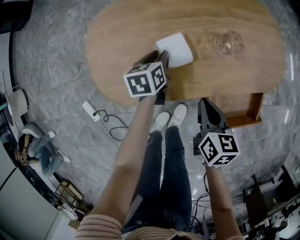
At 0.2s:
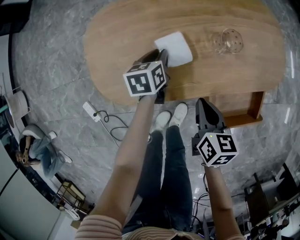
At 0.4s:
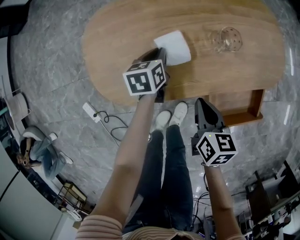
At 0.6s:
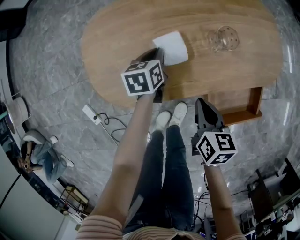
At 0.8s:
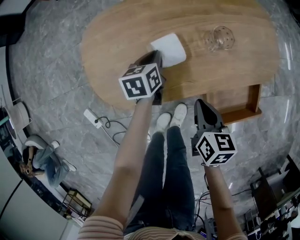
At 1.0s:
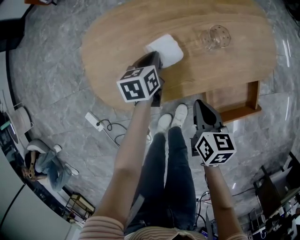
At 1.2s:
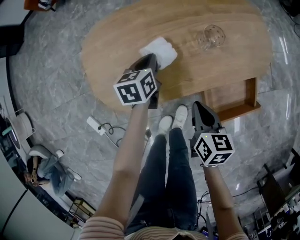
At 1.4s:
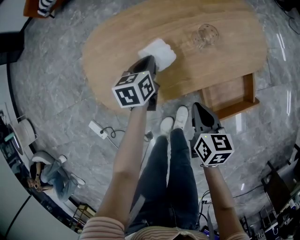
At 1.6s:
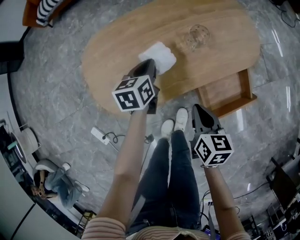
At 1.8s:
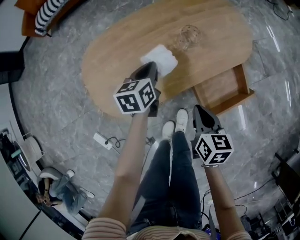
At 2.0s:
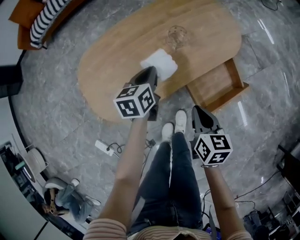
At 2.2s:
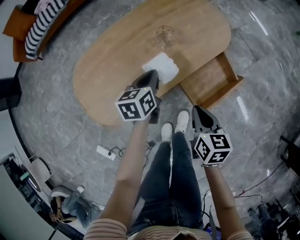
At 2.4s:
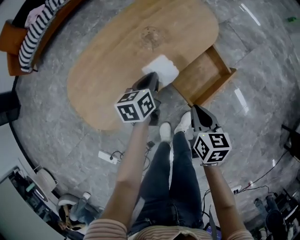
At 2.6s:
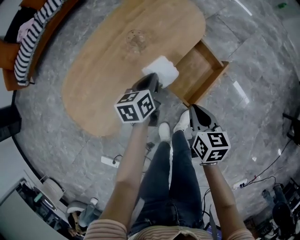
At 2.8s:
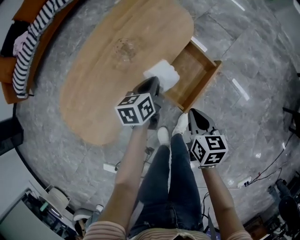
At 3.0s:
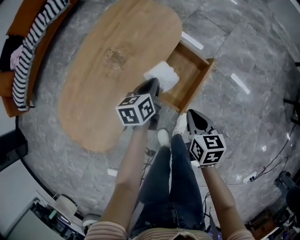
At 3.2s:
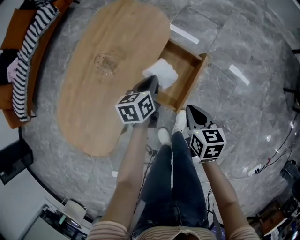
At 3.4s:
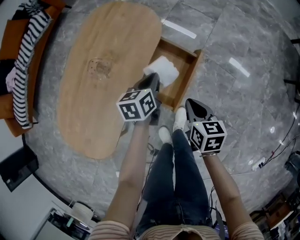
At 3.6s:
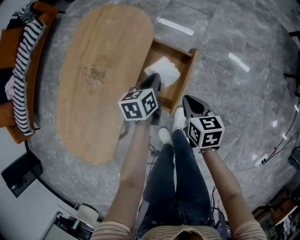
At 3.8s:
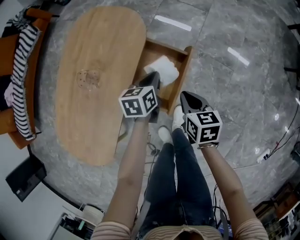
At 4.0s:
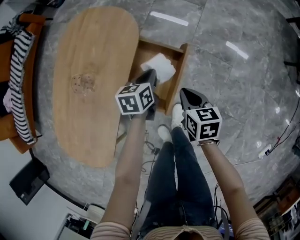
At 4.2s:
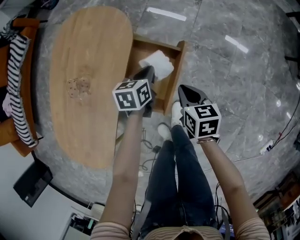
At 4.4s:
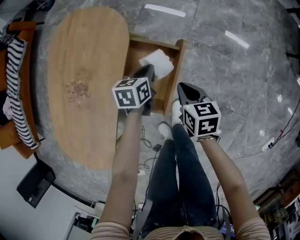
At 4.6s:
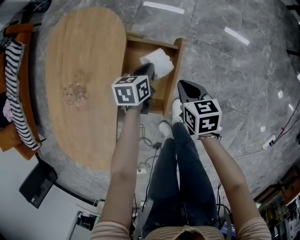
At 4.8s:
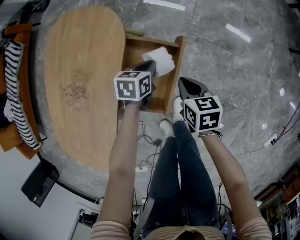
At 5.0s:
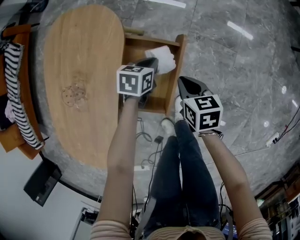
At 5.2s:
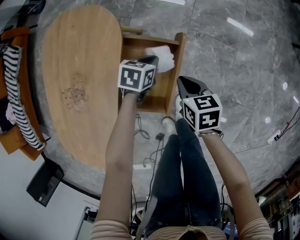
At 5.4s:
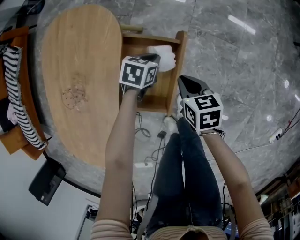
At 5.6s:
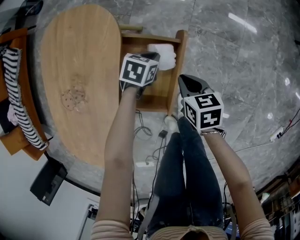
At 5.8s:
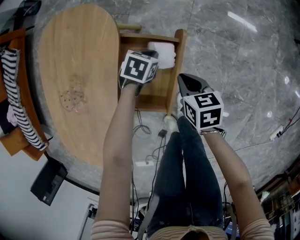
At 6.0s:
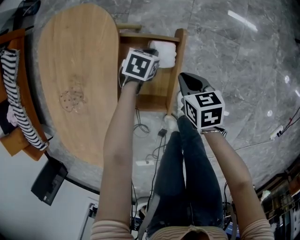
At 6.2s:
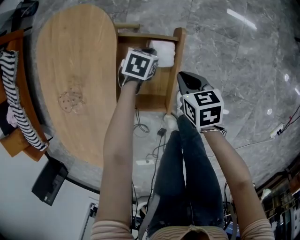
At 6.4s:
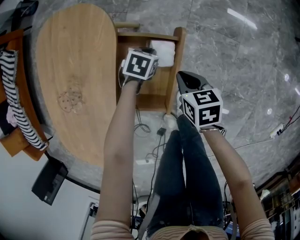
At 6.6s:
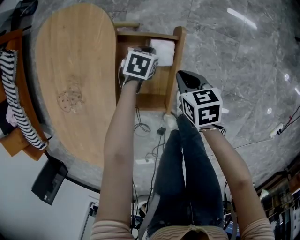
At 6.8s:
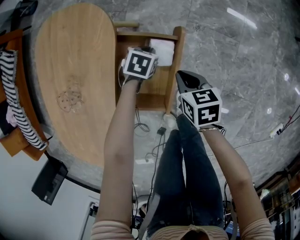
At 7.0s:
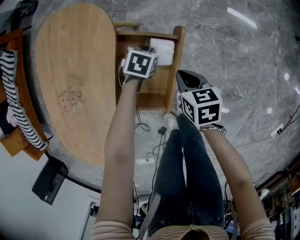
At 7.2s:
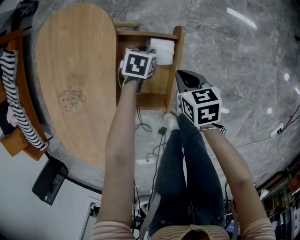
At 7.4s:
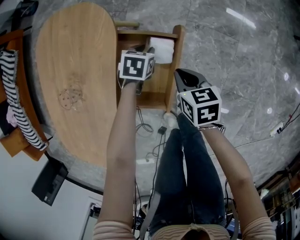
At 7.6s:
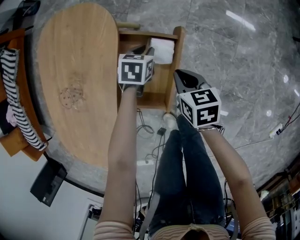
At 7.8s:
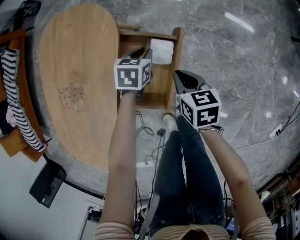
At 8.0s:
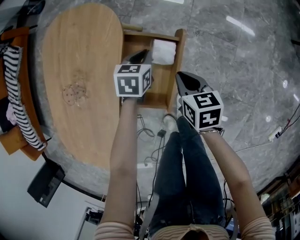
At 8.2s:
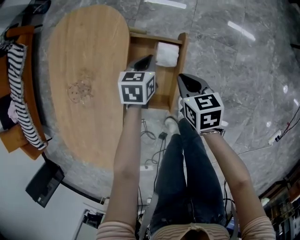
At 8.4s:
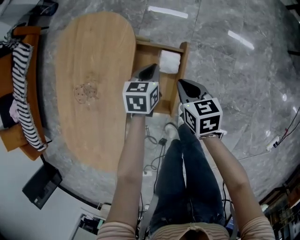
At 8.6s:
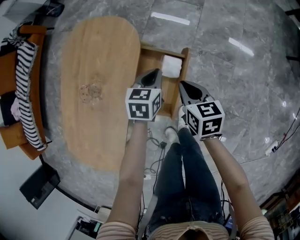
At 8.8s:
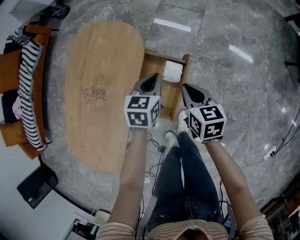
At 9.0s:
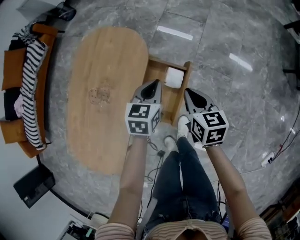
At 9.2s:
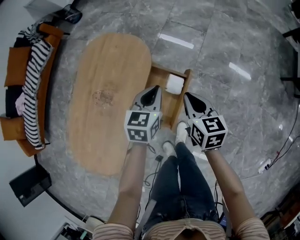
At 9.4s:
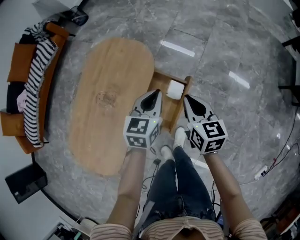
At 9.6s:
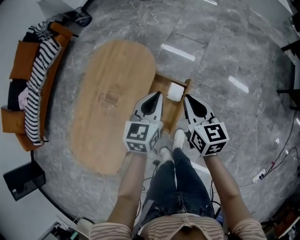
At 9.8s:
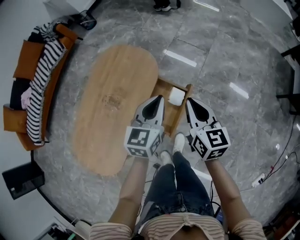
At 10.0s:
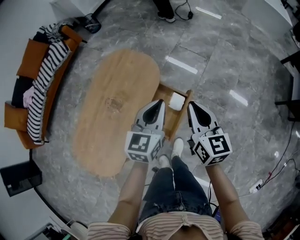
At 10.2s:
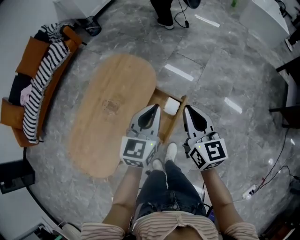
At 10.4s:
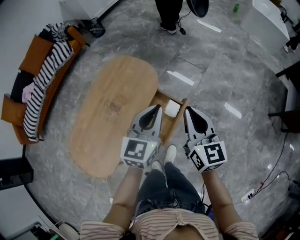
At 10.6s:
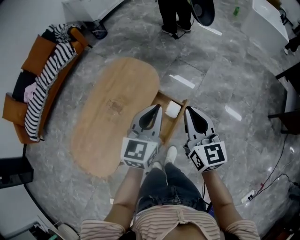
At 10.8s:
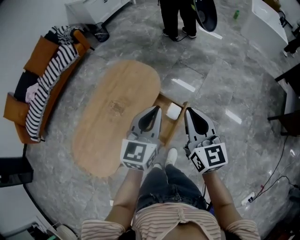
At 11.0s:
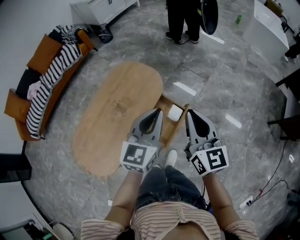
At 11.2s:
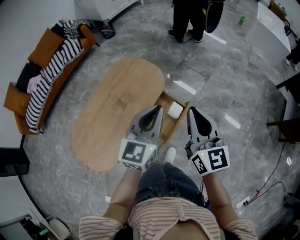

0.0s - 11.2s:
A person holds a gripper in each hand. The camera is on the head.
0.0s - 1.6s: The right gripper shifts some 5 cm backward, while the left gripper travels upward by approximately 10 cm, and closes.
1.6s - 3.2s: The left gripper shifts by approximately 35 cm, and swivels approximately 40 degrees. Meanwhile the right gripper ends up about 25 cm from where it was, and rotates about 30 degrees.
3.2s - 4.8s: The left gripper heads downward, to the right and forward, covering approximately 20 cm, and rotates approximately 30 degrees, while the right gripper moves forward, downward and to the right, roughly 20 cm.
4.8s - 6.4s: The left gripper shifts roughly 10 cm downward, and changes its angle by roughly 30 degrees.
6.4s - 8.0s: The left gripper heads upward, covering approximately 10 cm, and changes its angle by about 20 degrees.
8.0s - 9.6s: Both grippers travel together upward, roughly 30 cm. The right gripper turns by approximately 30 degrees. Meanwhile the left gripper tilts its fingers approximately 30 degrees upward.
9.6s - 11.2s: The left gripper heads upward and backward, covering roughly 20 cm; the right gripper travels upward by approximately 20 cm, and rotates roughly 30 degrees.

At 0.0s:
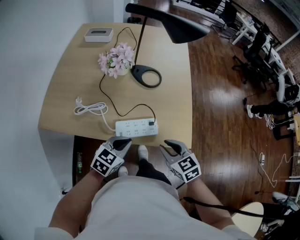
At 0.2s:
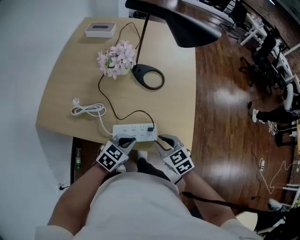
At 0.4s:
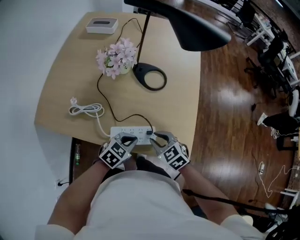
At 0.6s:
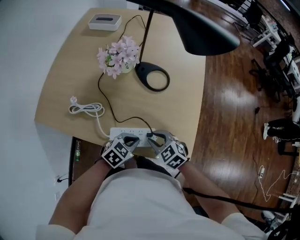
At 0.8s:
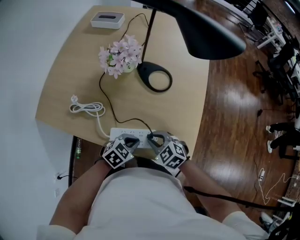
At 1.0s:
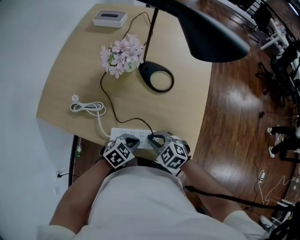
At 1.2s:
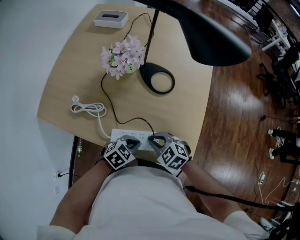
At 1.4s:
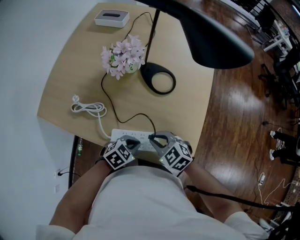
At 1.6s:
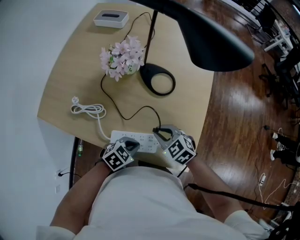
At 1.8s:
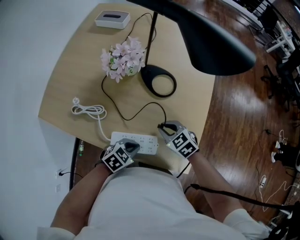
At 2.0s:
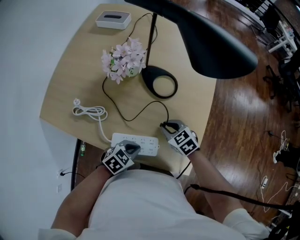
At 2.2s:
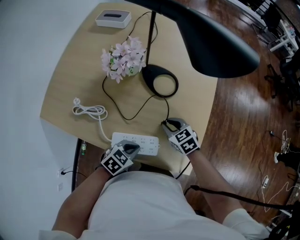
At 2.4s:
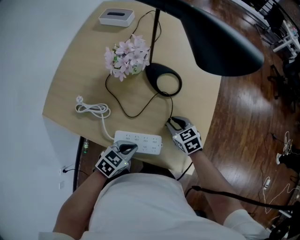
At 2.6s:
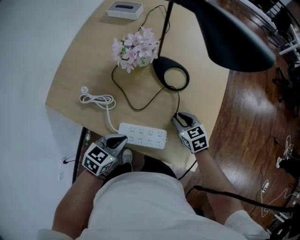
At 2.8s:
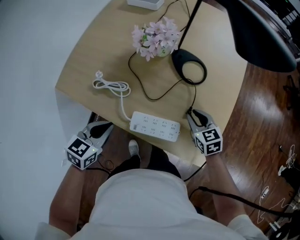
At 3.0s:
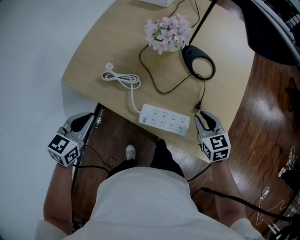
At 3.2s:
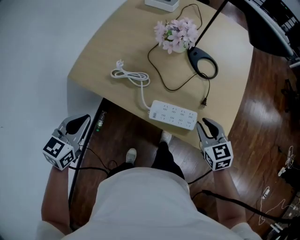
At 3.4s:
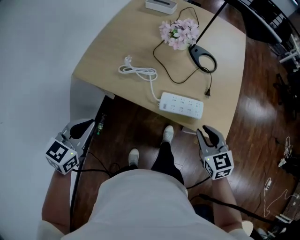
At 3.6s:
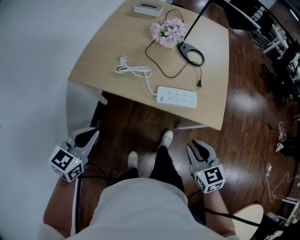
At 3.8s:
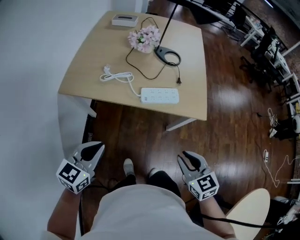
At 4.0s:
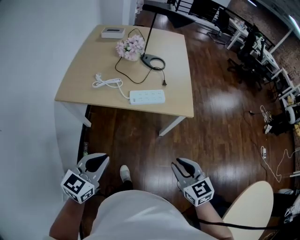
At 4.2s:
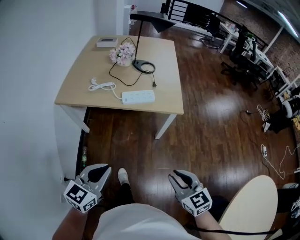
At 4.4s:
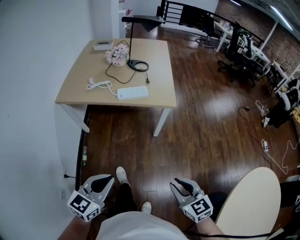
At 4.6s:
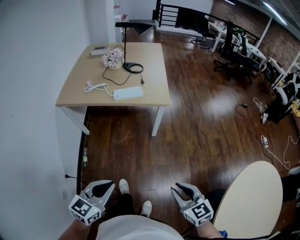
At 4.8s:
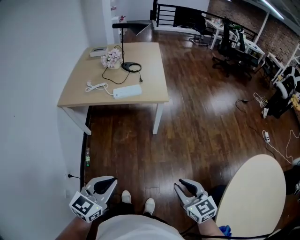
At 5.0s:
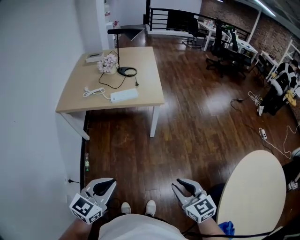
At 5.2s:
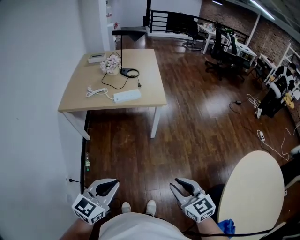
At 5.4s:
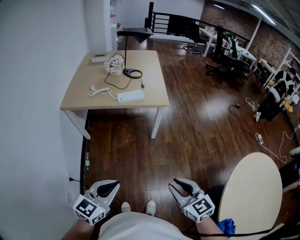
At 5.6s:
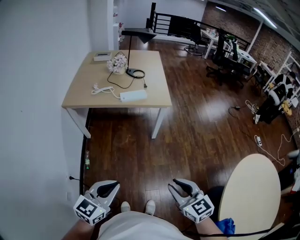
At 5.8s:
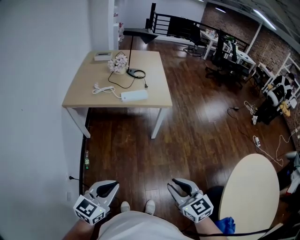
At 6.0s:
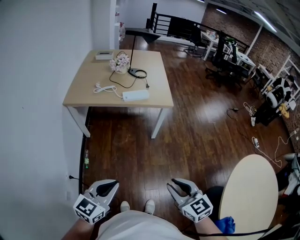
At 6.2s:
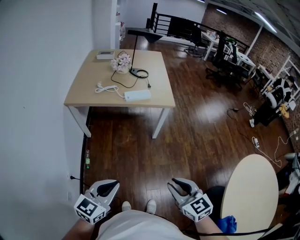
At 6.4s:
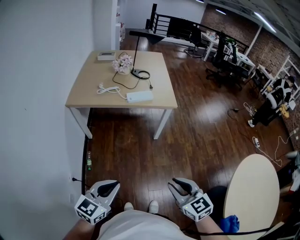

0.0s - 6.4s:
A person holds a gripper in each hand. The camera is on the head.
0.0s - 1.6s: The left gripper is displaced downward by roughly 10 cm, and swivels roughly 20 degrees. The right gripper shifts by some 20 cm, and changes its angle by some 30 degrees.
1.6s - 3.2s: The right gripper is displaced upward by about 5 cm, and turns by some 20 degrees, while the left gripper shifts by about 40 cm, and turns by about 40 degrees.
3.2s - 4.8s: Both grippers are carried roughly 70 cm. The left gripper changes its angle by approximately 40 degrees. The right gripper rotates some 30 degrees.
4.8s - 6.4s: The right gripper is displaced to the left by roughly 15 cm; the left gripper is displaced to the left and backward by roughly 15 cm.

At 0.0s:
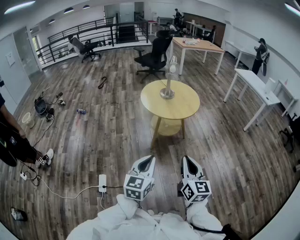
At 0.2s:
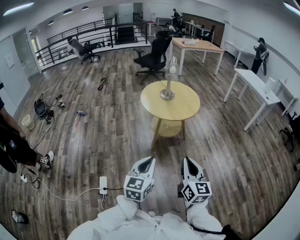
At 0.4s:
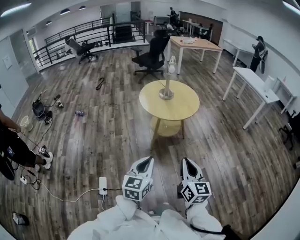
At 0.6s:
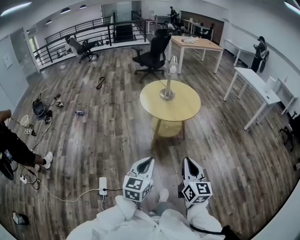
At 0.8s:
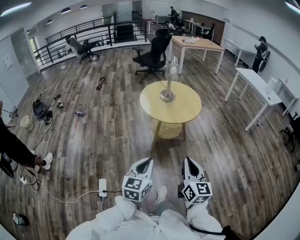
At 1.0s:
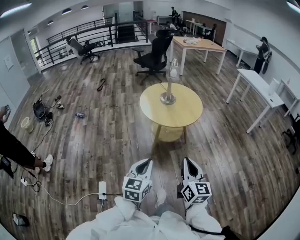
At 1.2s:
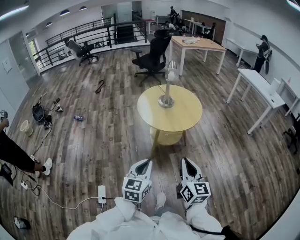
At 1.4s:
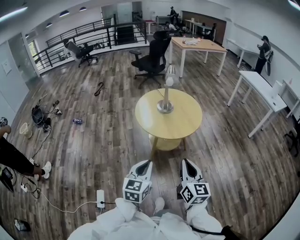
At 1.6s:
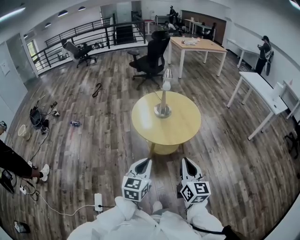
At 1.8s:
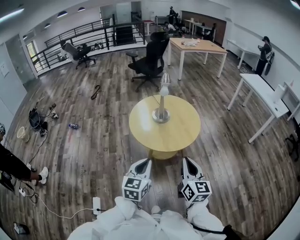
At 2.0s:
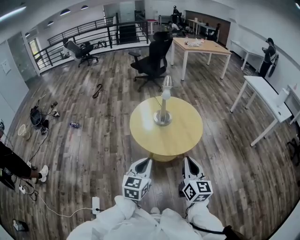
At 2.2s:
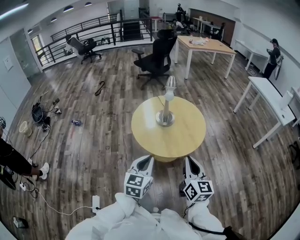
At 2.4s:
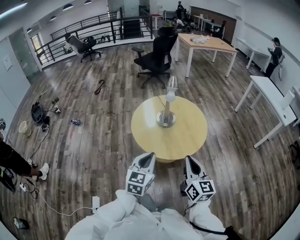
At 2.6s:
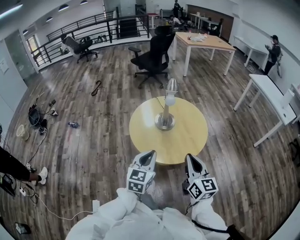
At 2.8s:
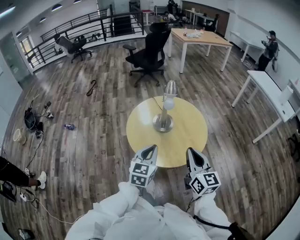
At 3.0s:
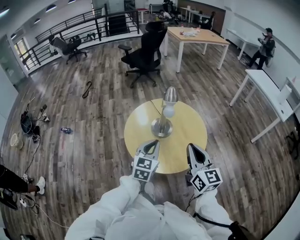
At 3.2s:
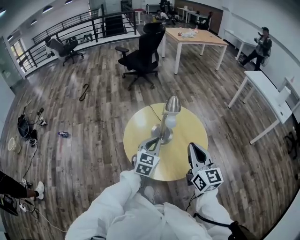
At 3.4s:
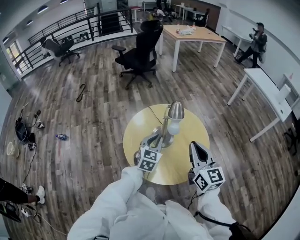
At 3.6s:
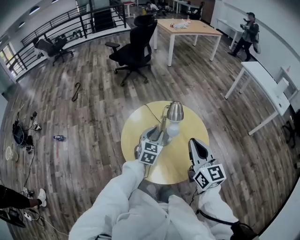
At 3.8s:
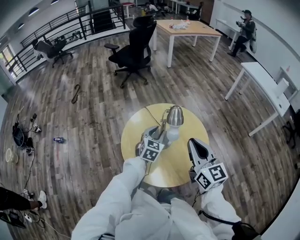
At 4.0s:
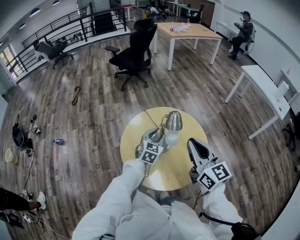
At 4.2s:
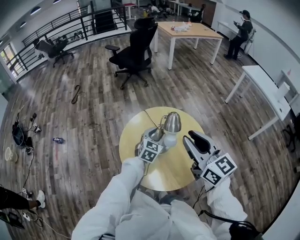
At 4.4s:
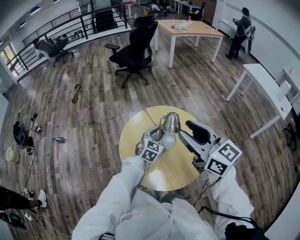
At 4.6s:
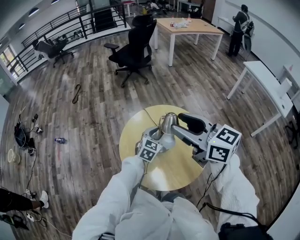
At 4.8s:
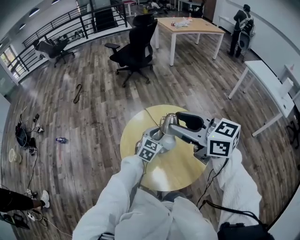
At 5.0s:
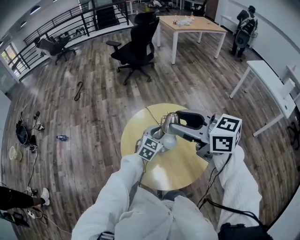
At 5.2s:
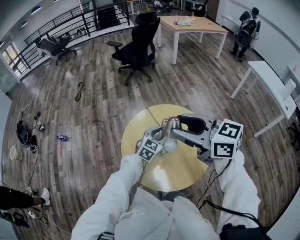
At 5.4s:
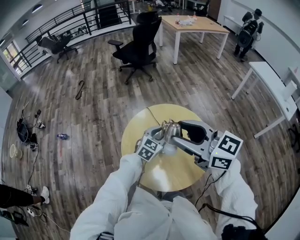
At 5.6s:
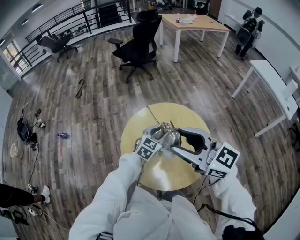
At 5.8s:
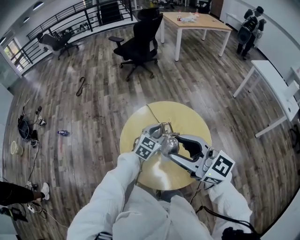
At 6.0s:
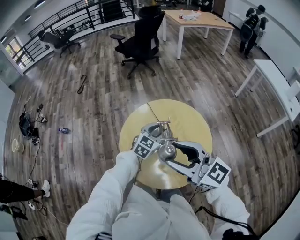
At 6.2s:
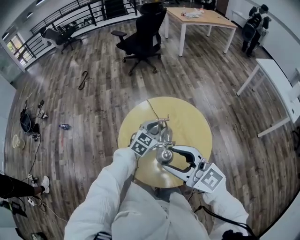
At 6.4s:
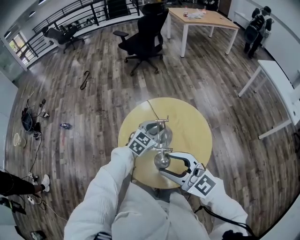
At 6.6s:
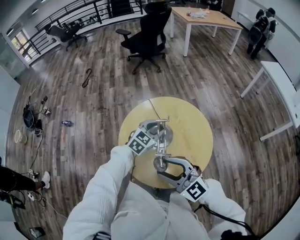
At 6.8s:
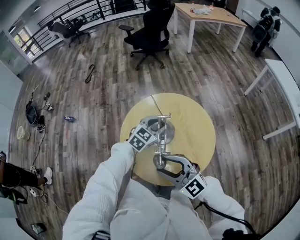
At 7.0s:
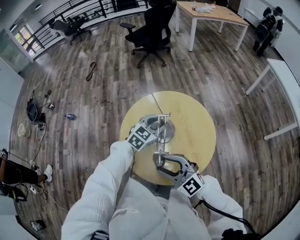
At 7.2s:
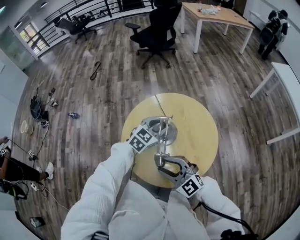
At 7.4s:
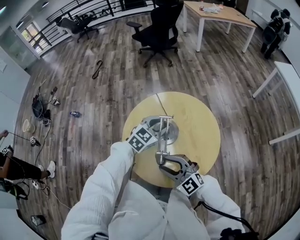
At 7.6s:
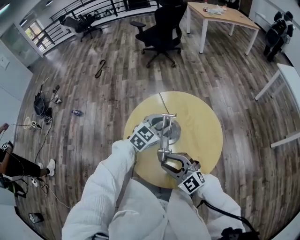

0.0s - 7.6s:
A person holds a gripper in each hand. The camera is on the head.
0.0s - 1.6s: Both grippers travel together forward, approximately 30 cm.
1.6s - 3.0s: The two grippers go roughly 35 cm forward.
3.0s - 4.6s: The right gripper is displaced forward, upward and to the left by approximately 25 cm, rotates some 30 degrees, and opens its fingers. The left gripper heads forward, covering roughly 25 cm, and opens.
4.6s - 6.0s: The right gripper goes some 10 cm backward and downward, and changes its angle by about 20 degrees.
6.0s - 7.6s: The right gripper heads downward, covering about 25 cm, and turns by roughly 30 degrees.
